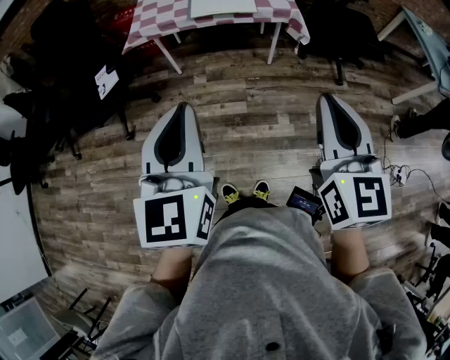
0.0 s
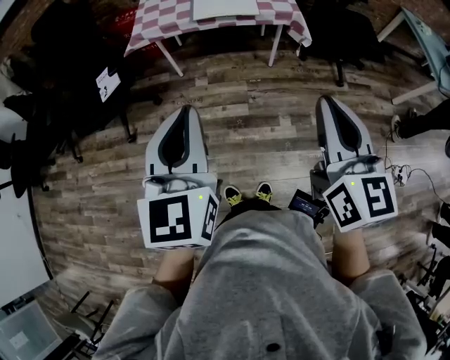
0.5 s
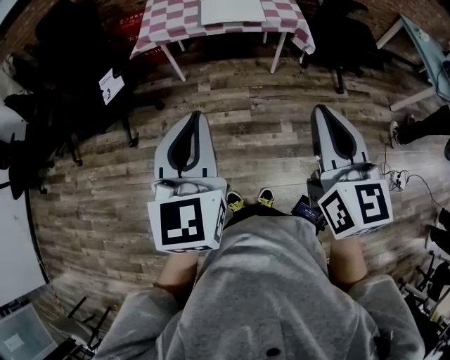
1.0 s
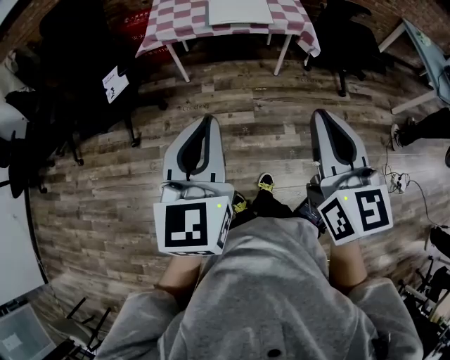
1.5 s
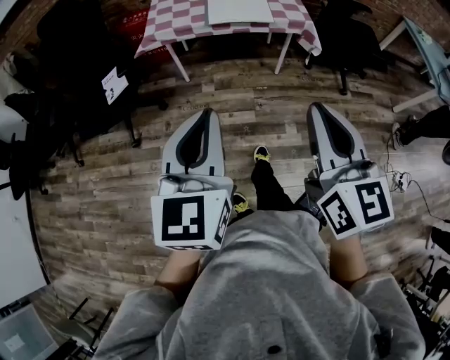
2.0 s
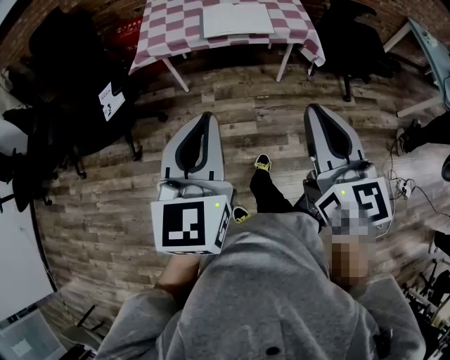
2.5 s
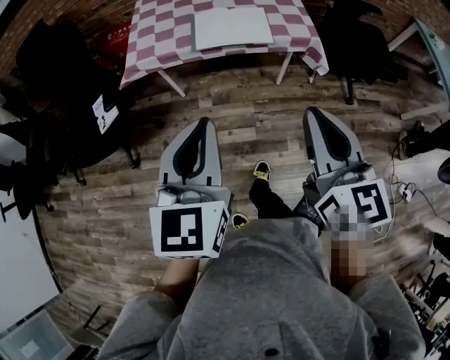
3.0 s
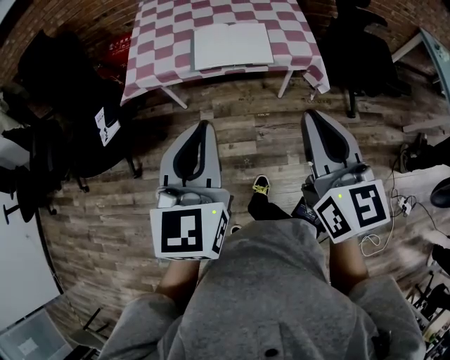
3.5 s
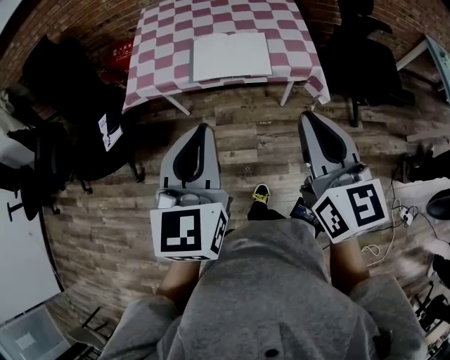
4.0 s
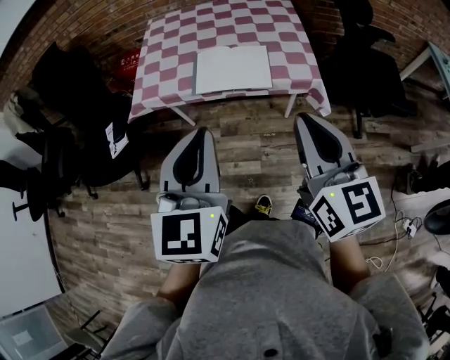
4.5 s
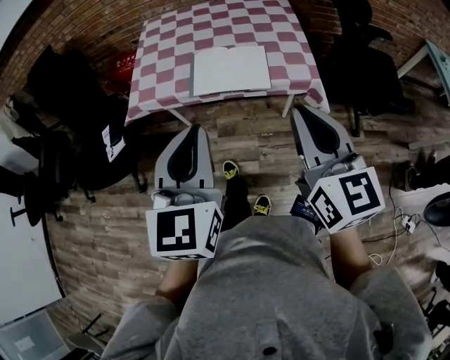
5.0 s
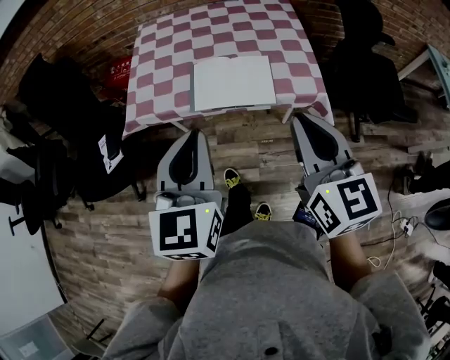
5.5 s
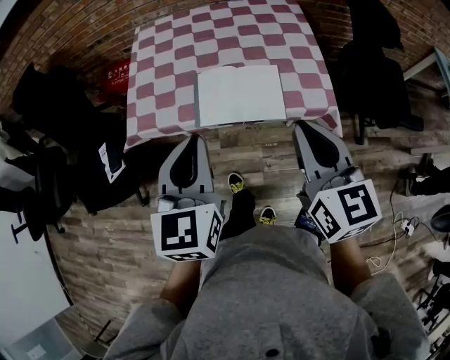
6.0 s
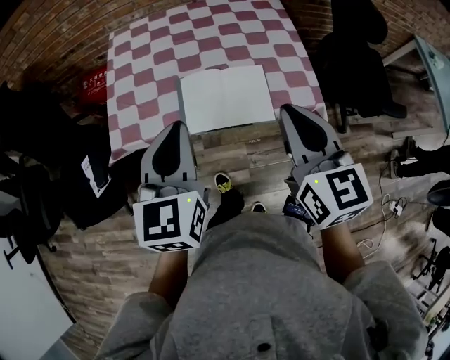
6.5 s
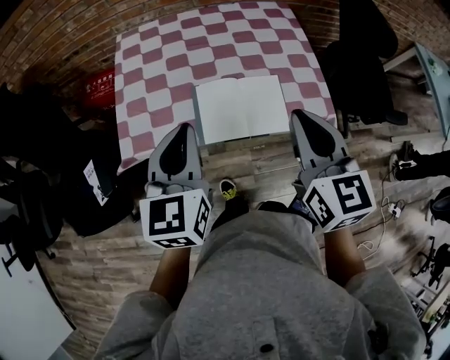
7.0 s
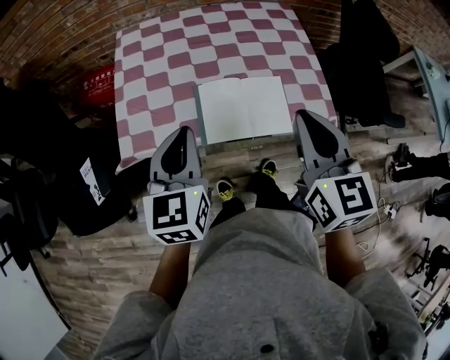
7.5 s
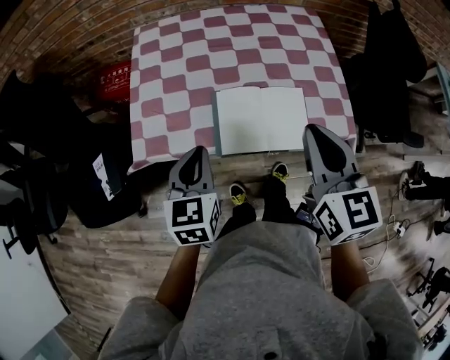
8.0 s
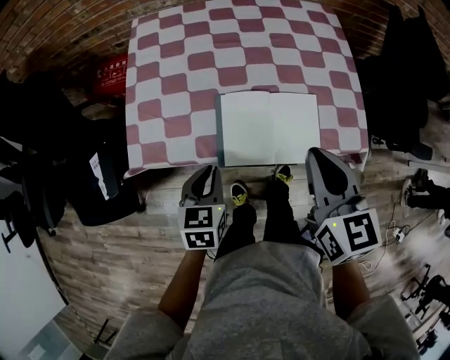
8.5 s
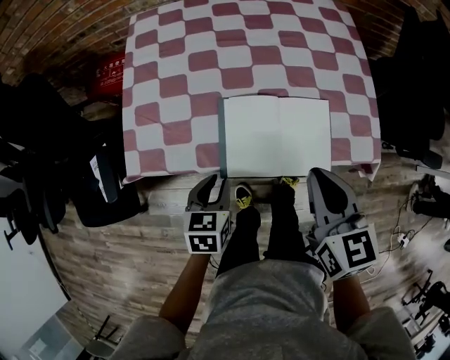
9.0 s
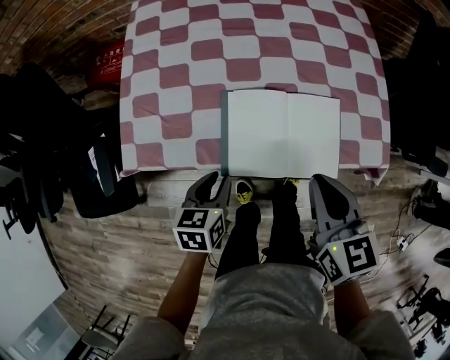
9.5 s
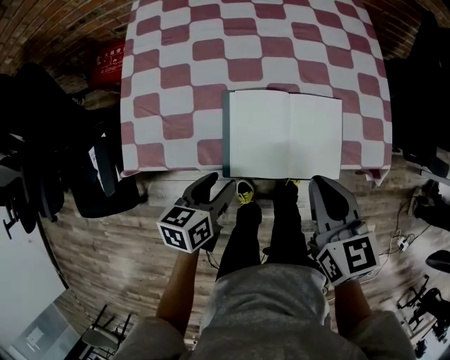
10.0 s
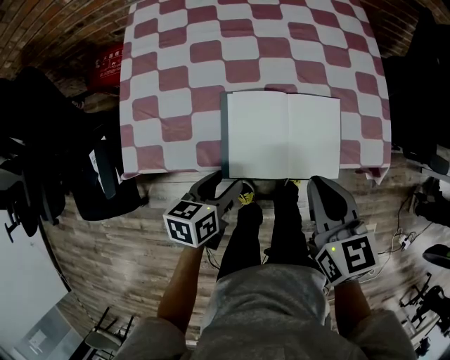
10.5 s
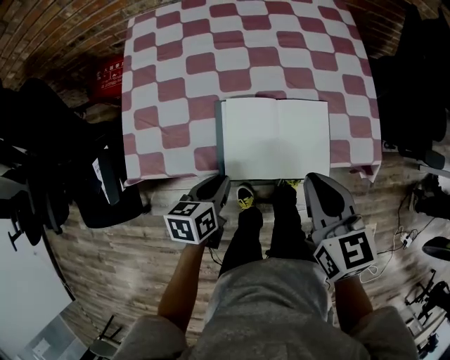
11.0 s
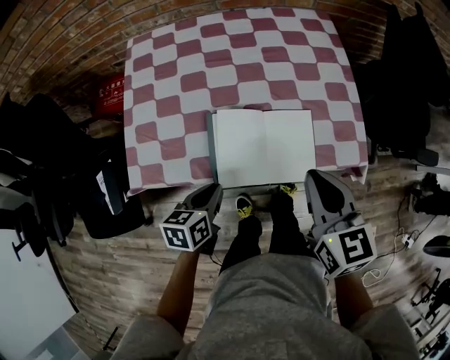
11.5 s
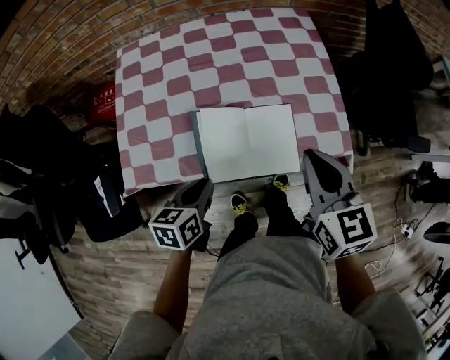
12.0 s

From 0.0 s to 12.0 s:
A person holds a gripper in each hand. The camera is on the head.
From 0.0 s to 2.0 s: The right gripper goes roughly 10 cm to the left.
From 2.0 s to 4.0 s: Both grippers travel together forward, about 30 cm.
From 4.0 s to 6.0 s: Both grippers travel together forward, roughly 20 cm.
From 6.0 s to 8.0 s: The right gripper goes some 15 cm forward and to the left, while the left gripper shifts roughly 20 cm downward, forward and to the left.
From 8.0 s to 10.0 s: The two grippers go approximately 15 cm downward. The left gripper rotates approximately 30 degrees, and opens its fingers.
From 10.0 s to 12.0 s: The right gripper moves upward and to the right, about 10 cm. Meanwhile the left gripper is displaced upward by about 10 cm, and closes its fingers.

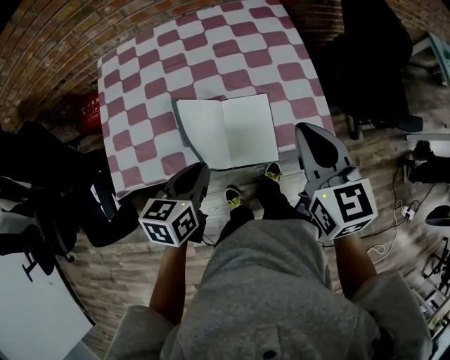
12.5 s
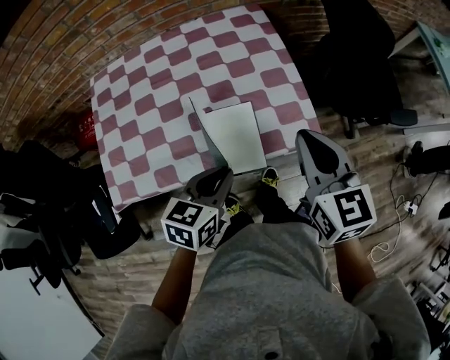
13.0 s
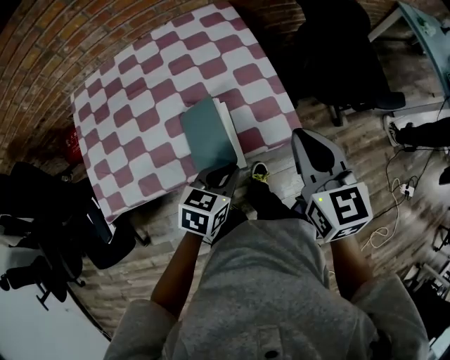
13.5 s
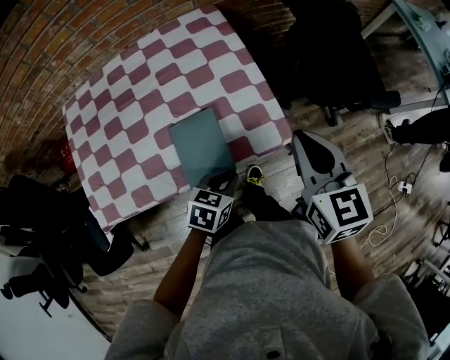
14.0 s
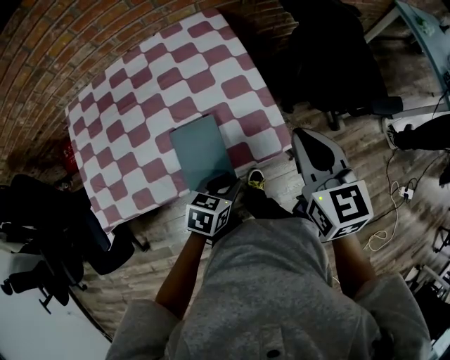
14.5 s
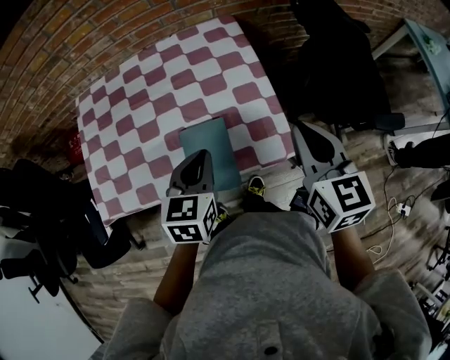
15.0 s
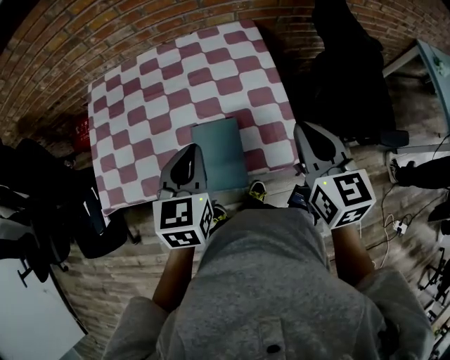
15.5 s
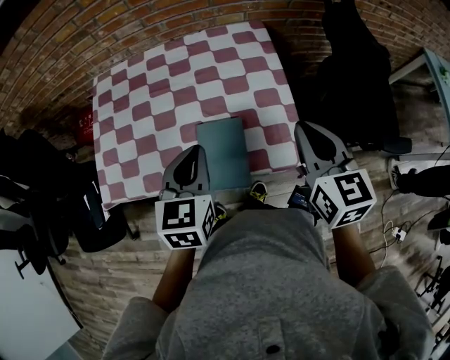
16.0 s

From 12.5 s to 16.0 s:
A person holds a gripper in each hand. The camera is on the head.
From 12.5 s to 14.5 s: The right gripper moves to the right and forward, some 15 cm. Meanwhile the left gripper is displaced to the right and downward by about 20 cm, turns by about 30 degrees, and opens.
From 14.5 s to 16.0 s: The left gripper is displaced upward by about 20 cm, swivels roughly 40 degrees, and closes its fingers; the right gripper moves some 5 cm.

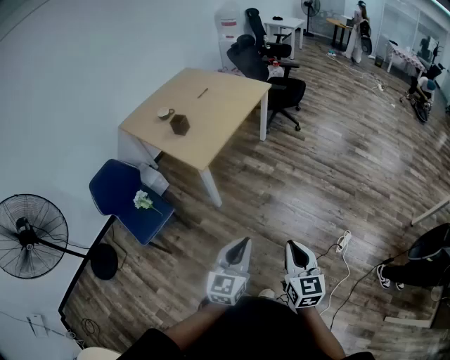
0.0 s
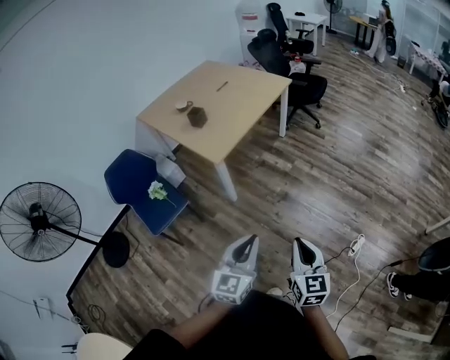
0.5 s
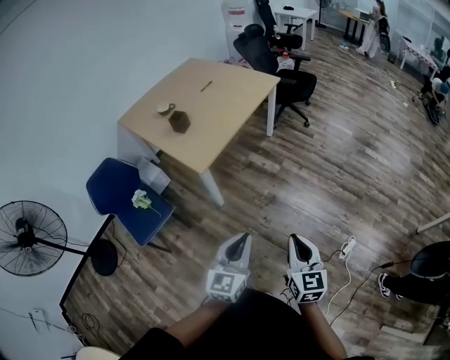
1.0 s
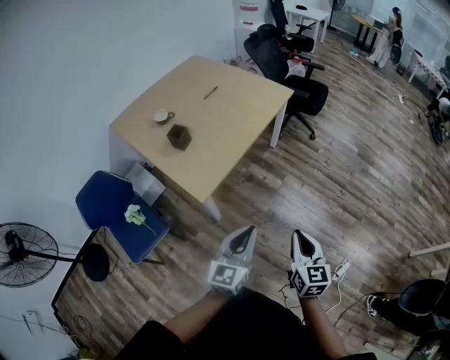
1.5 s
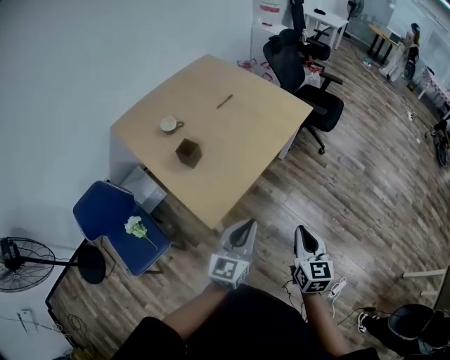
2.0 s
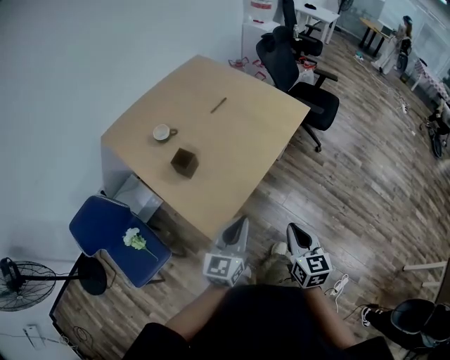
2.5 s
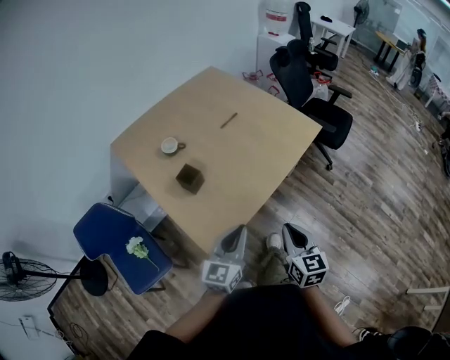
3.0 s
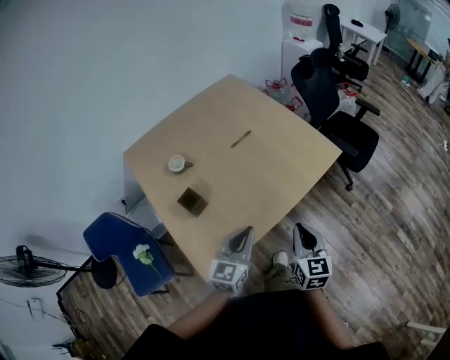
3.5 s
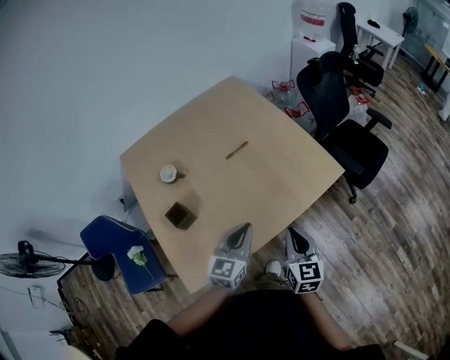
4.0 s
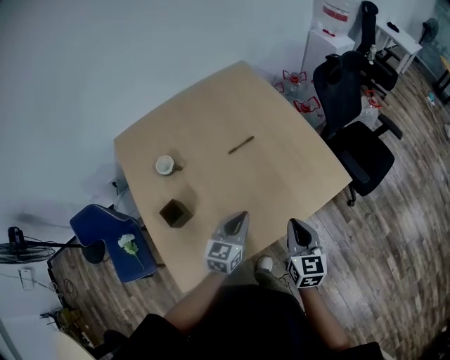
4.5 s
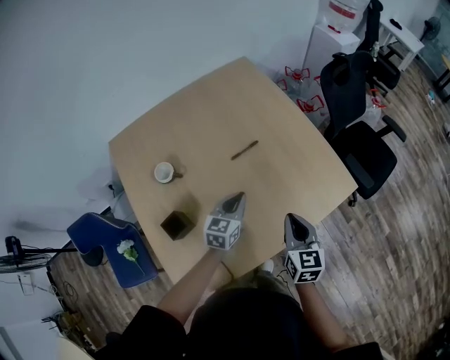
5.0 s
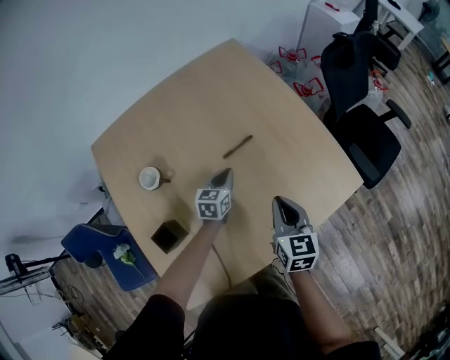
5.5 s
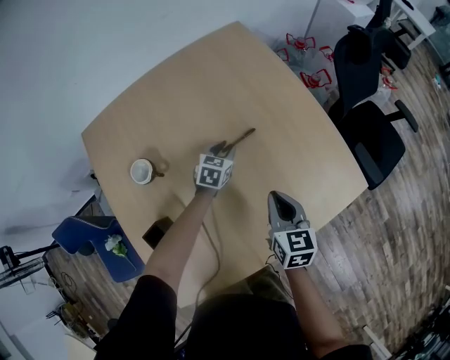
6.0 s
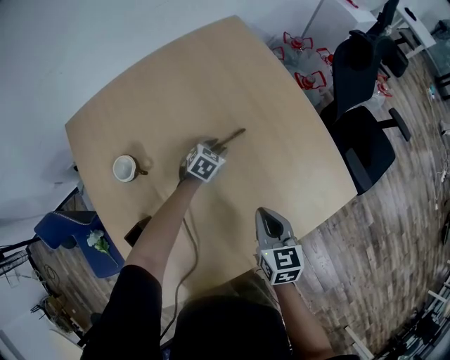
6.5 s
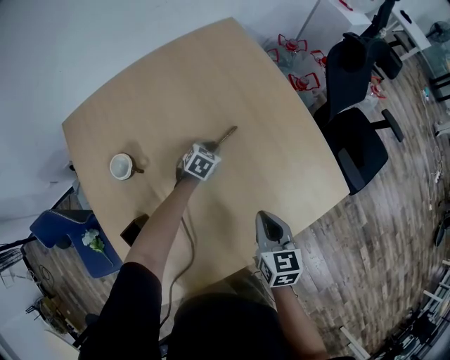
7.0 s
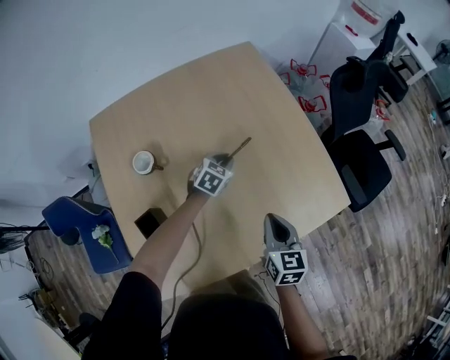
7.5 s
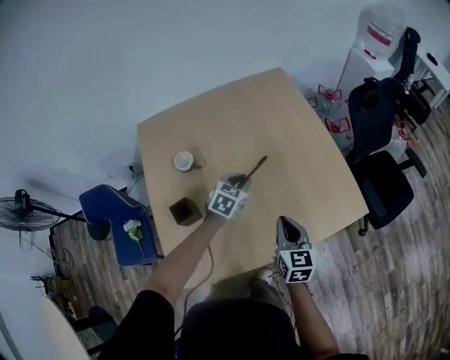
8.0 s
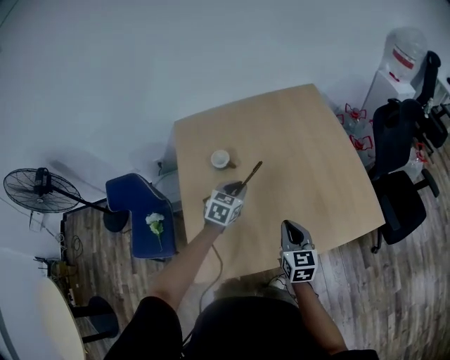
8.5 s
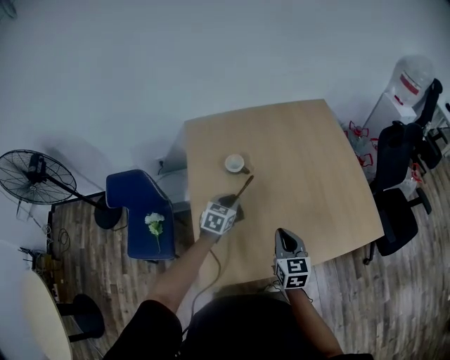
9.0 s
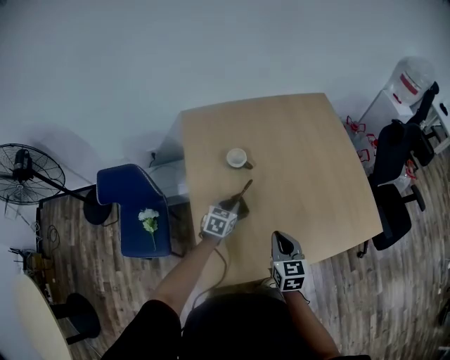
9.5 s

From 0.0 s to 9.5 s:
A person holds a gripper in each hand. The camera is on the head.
From 0.0 s to 2.0 s: The pair of grippers is taken forward, roughly 60 cm.
From 2.0 s to 4.0 s: The pair of grippers is taken forward, roughly 50 cm.
From 4.0 s to 5.5 s: The right gripper goes approximately 30 cm forward and to the left. The left gripper heads forward and downward, covering roughly 40 cm, and rotates roughly 20 degrees.
From 5.5 s to 7.5 s: The right gripper travels downward and back again, some 10 cm each way. Meanwhile the left gripper travels downward and back again, approximately 15 cm each way, changes its angle by approximately 30 degrees, and opens, then closes once more.
From 7.5 s to 9.5 s: Both grippers travel together to the left and backward, roughly 40 cm. The left gripper rotates some 30 degrees.

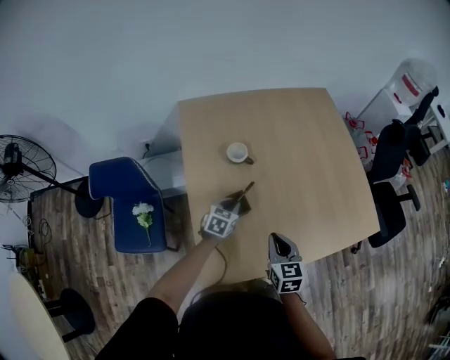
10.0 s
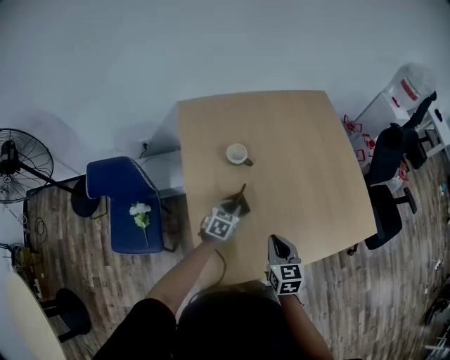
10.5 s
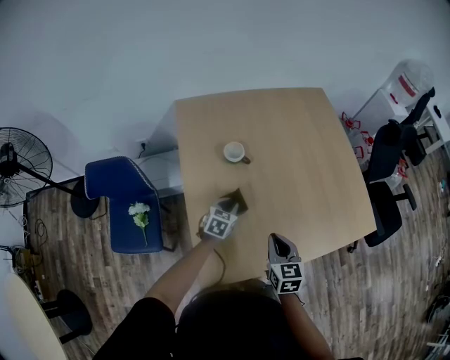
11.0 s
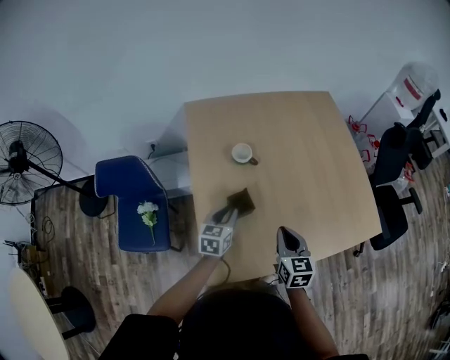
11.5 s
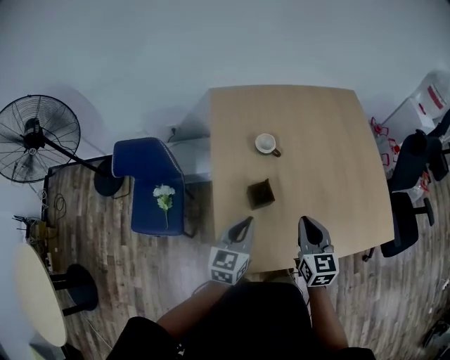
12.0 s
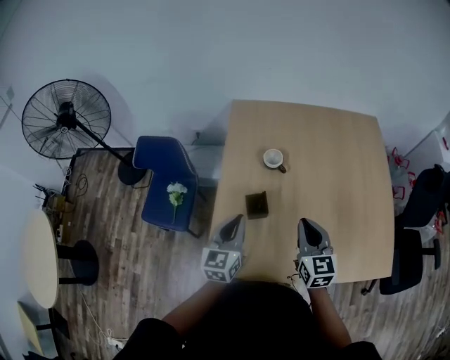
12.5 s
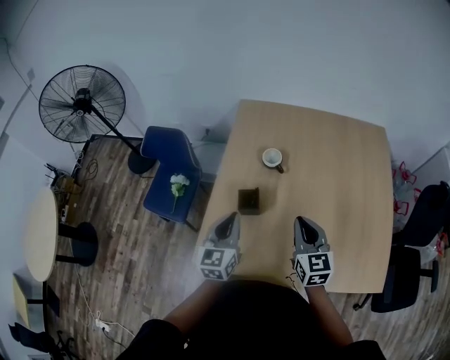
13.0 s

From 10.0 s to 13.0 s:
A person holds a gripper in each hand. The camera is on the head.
From 10.0 s to 11.5 s: The left gripper heads upward and backward, covering some 10 cm.
From 11.5 s to 13.0 s: The right gripper shifts by some 15 cm, and turns by about 30 degrees. Meanwhile the left gripper is displaced upward by about 15 cm, and changes its angle by about 40 degrees.
